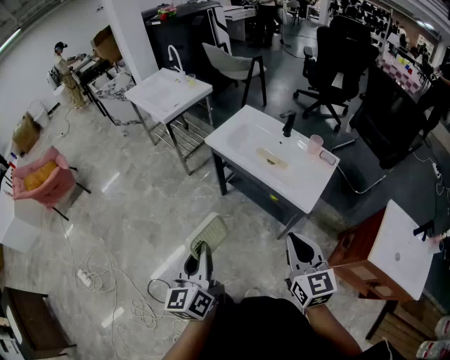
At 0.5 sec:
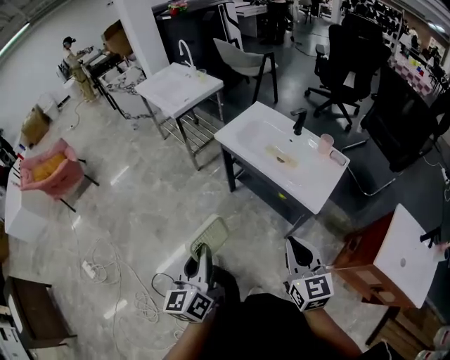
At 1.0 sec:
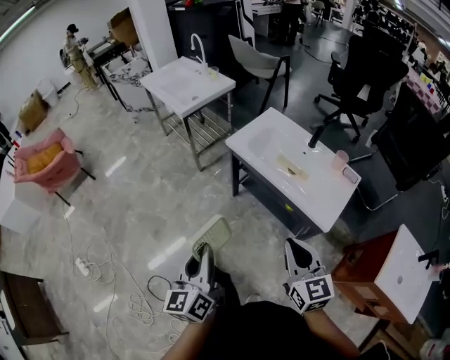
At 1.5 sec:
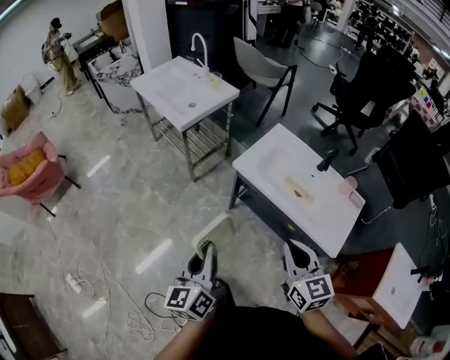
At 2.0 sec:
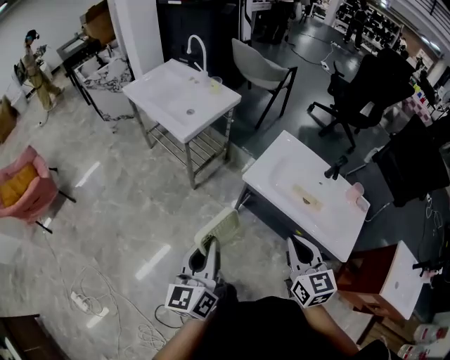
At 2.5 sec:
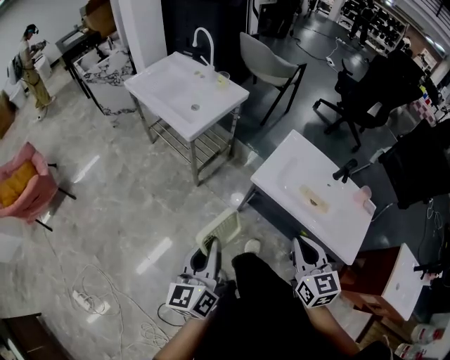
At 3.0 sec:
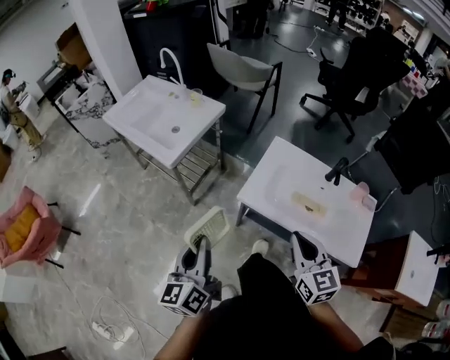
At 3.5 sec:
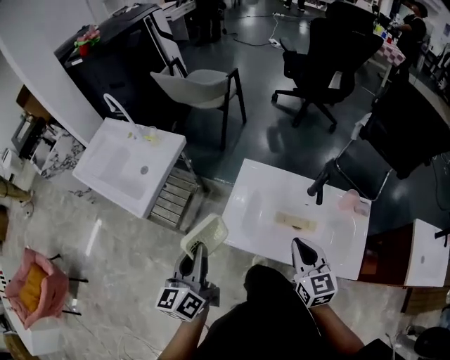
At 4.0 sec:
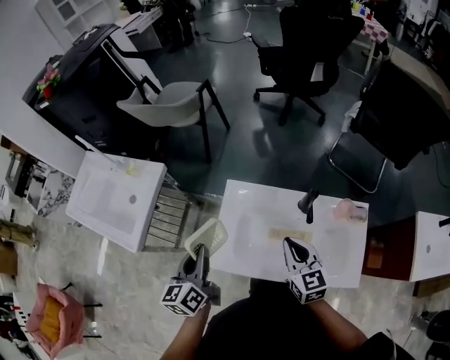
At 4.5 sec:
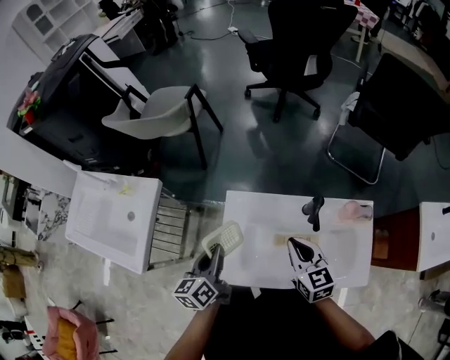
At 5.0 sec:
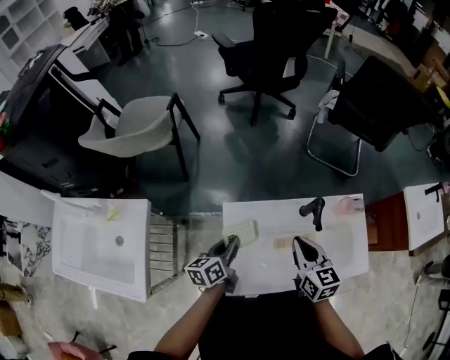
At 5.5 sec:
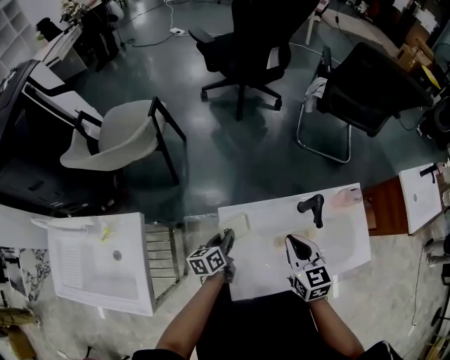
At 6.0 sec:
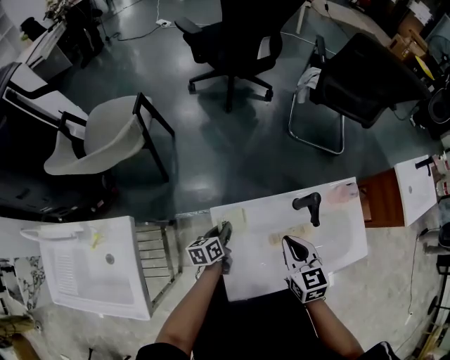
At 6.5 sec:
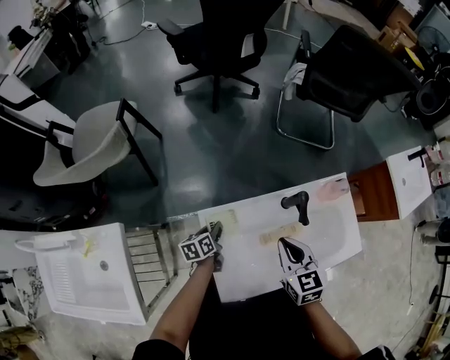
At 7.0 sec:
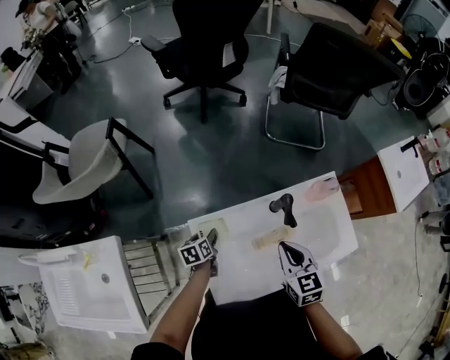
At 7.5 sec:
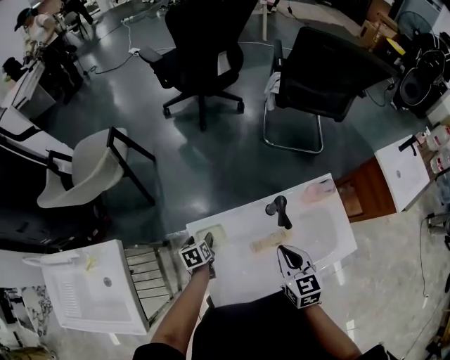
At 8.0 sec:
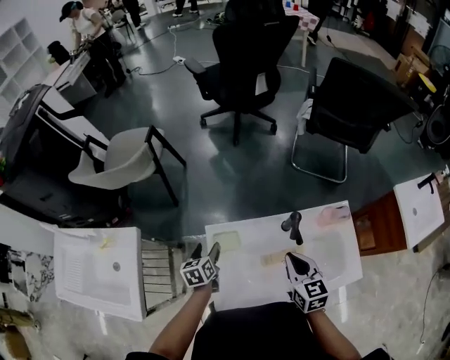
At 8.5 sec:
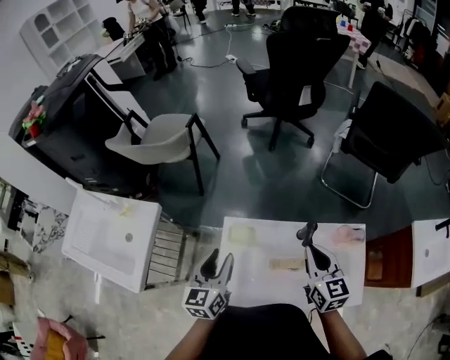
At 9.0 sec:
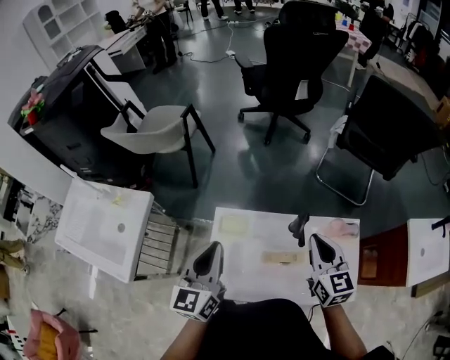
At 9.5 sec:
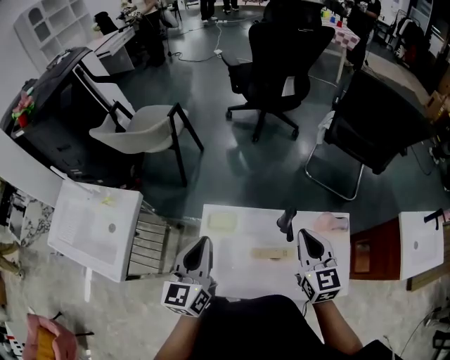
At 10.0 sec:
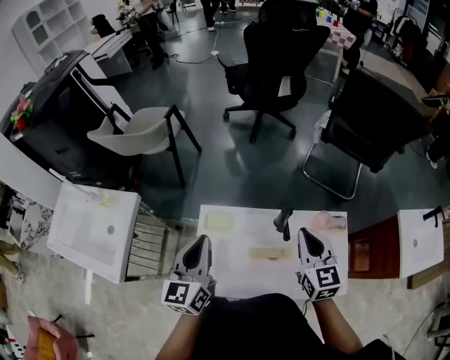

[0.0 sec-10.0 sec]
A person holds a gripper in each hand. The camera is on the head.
0.0 sec to 2.0 sec: Both grippers are carried forward and to the left, some 40 cm.
2.0 sec to 4.0 sec: Both grippers travel together forward and to the right, about 40 cm. The left gripper turns by roughly 30 degrees, while the right gripper changes its angle by about 20 degrees.
4.0 sec to 6.0 sec: The left gripper is displaced downward by about 25 cm, and turns by some 50 degrees. Meanwhile the right gripper shifts by roughly 15 cm, and changes its angle by approximately 30 degrees.
6.0 sec to 8.0 sec: The left gripper moves upward, roughly 5 cm, changes its angle by about 30 degrees, and opens. The right gripper shifts about 10 cm to the right.
8.0 sec to 10.0 sec: The left gripper moves upward and backward, about 25 cm, points its fingers about 30 degrees further upward, and closes its fingers, while the right gripper heads to the right and upward, covering roughly 10 cm.

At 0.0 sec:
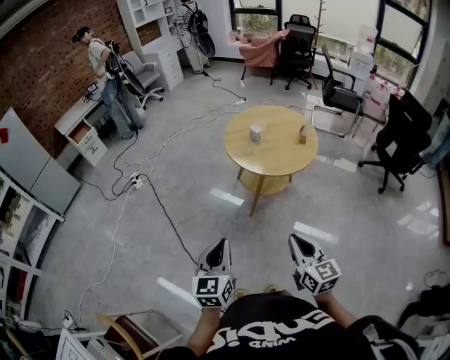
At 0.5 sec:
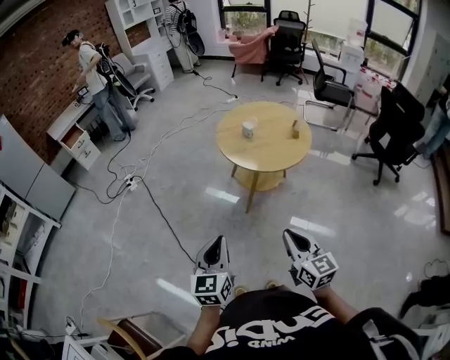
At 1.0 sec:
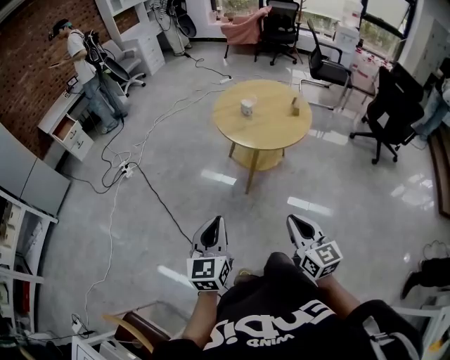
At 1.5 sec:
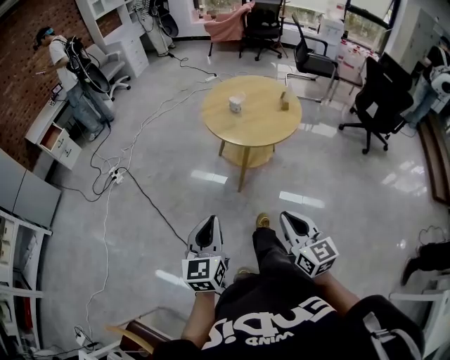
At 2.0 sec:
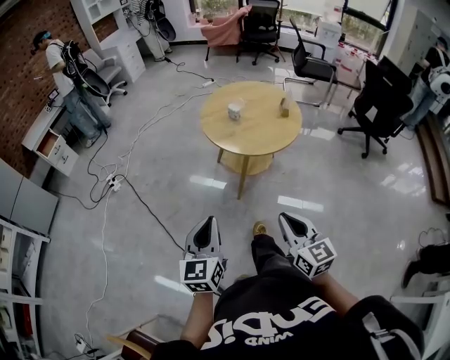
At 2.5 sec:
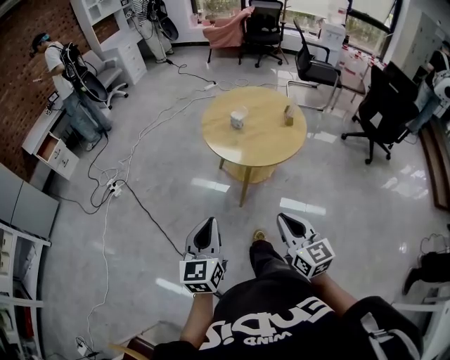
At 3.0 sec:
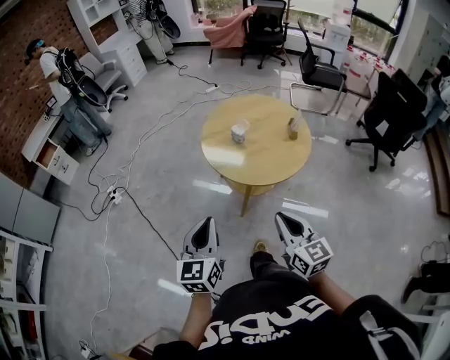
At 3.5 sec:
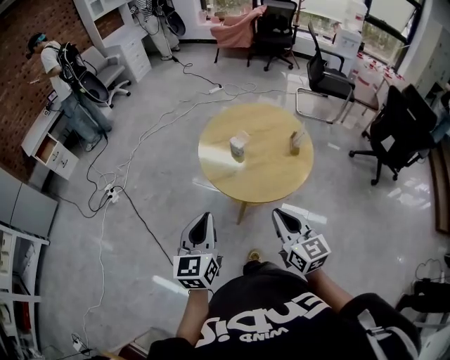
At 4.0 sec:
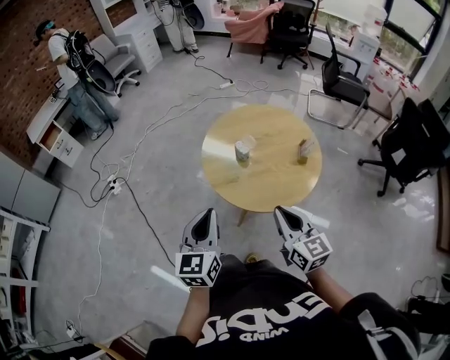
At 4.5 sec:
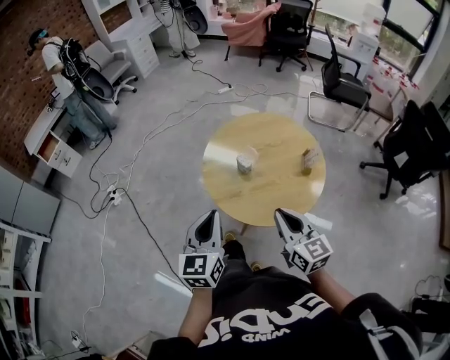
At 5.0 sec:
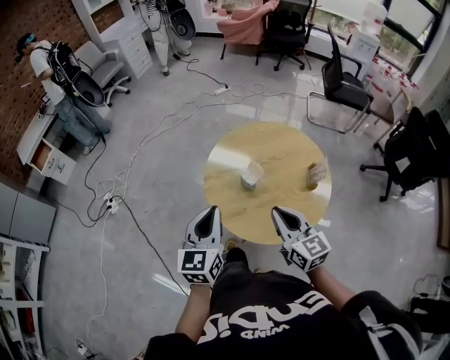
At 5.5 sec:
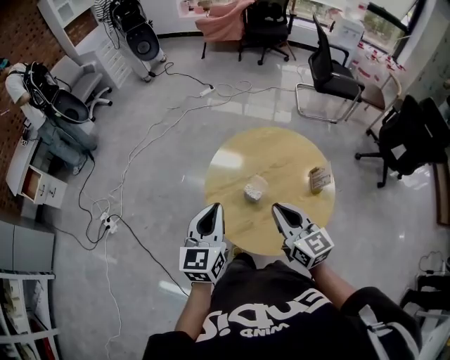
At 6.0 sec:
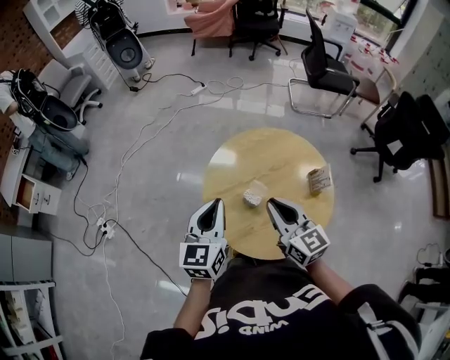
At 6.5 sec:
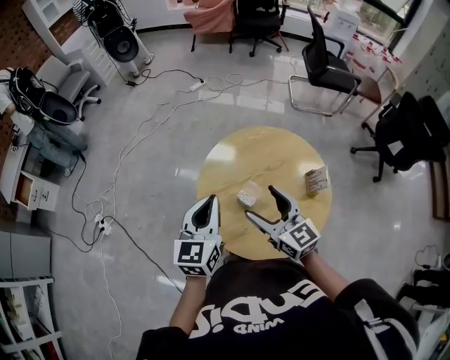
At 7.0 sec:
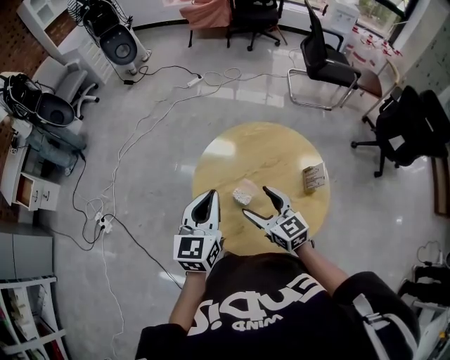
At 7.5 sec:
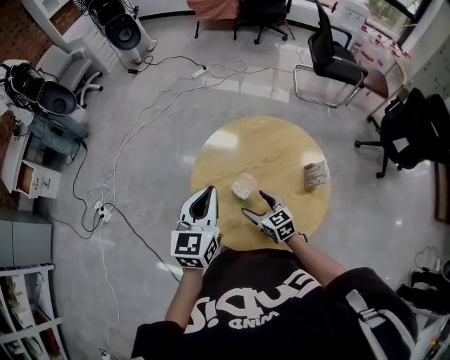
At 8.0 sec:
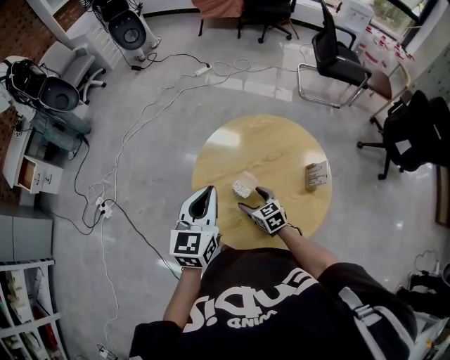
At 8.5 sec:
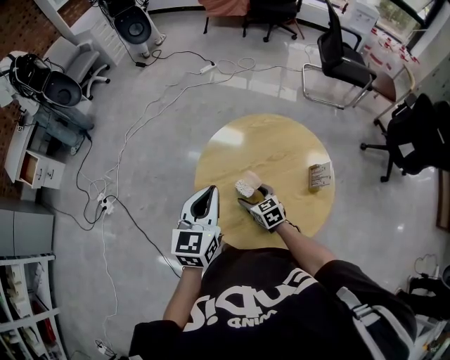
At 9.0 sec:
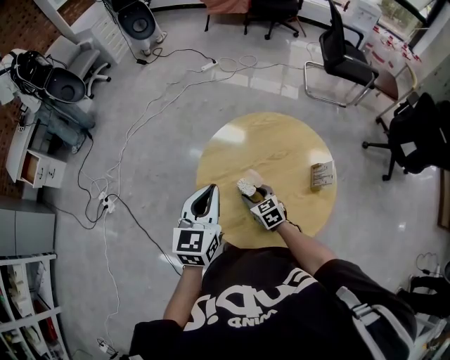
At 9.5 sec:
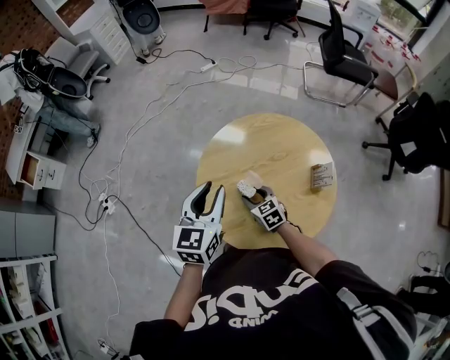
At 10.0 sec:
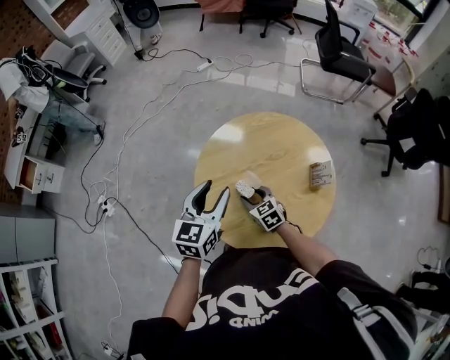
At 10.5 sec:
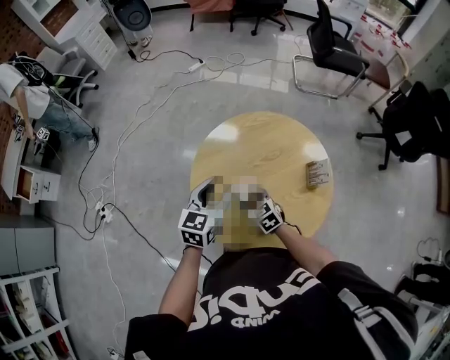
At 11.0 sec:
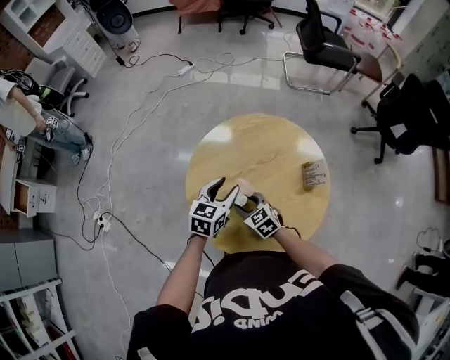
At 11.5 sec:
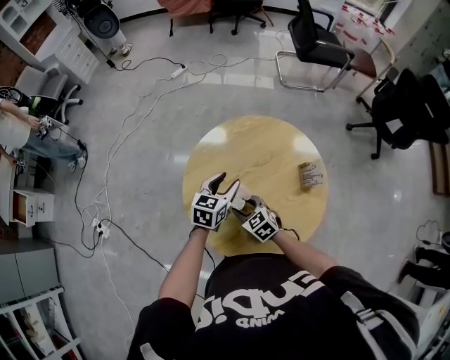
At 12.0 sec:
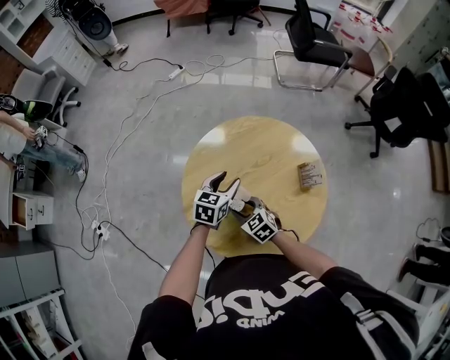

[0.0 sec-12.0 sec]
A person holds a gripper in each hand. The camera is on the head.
0.0 sec to 2.0 sec: The left gripper travels forward by approximately 5 cm, while the right gripper travels to the left by about 5 cm.
2.0 sec to 4.0 sec: The two grippers go about 30 cm forward.
4.0 sec to 6.0 sec: The two grippers go approximately 30 cm forward.
6.0 sec to 8.0 sec: The right gripper heads downward, covering some 25 cm, angles its fingers downward, by about 30 degrees, and opens up.
8.0 sec to 10.0 sec: The left gripper opens up; the right gripper closes up.
10.0 sec to 12.0 sec: The left gripper moves downward, forward and to the right, roughly 20 cm, and rotates roughly 20 degrees.

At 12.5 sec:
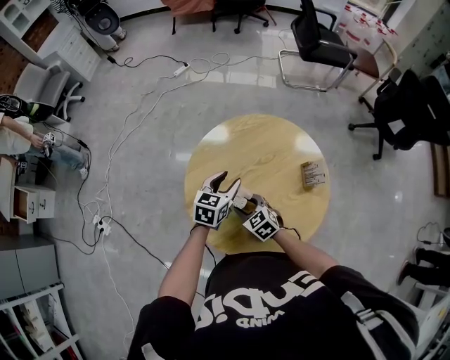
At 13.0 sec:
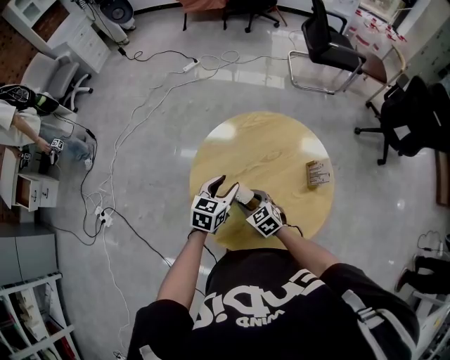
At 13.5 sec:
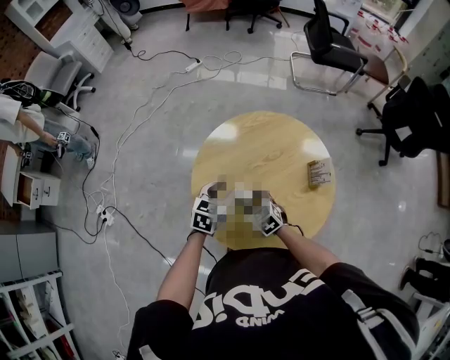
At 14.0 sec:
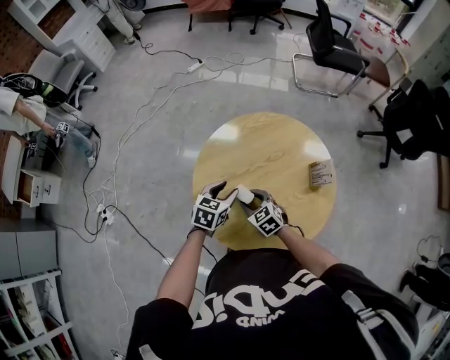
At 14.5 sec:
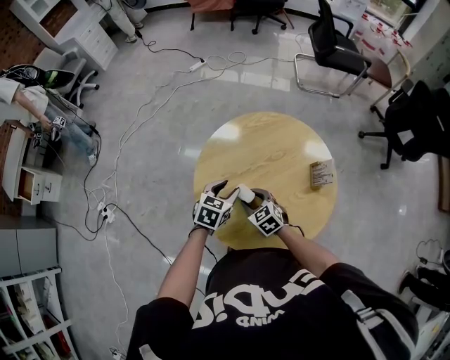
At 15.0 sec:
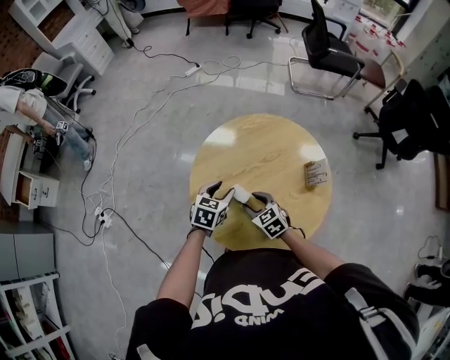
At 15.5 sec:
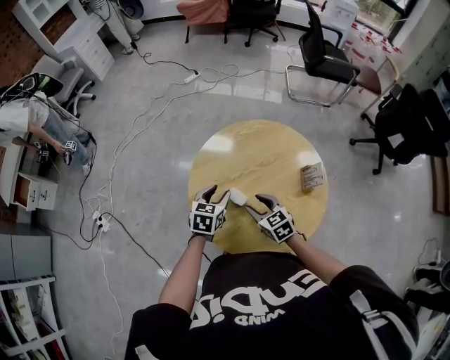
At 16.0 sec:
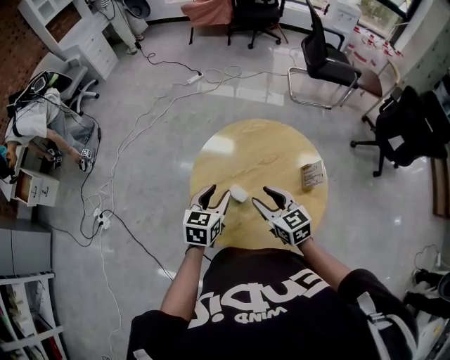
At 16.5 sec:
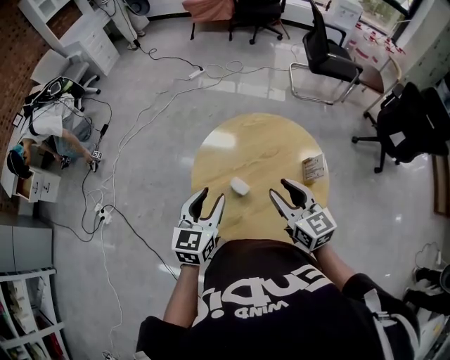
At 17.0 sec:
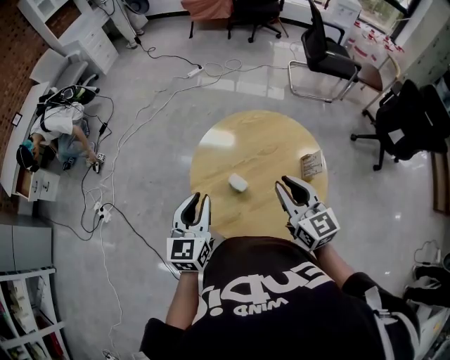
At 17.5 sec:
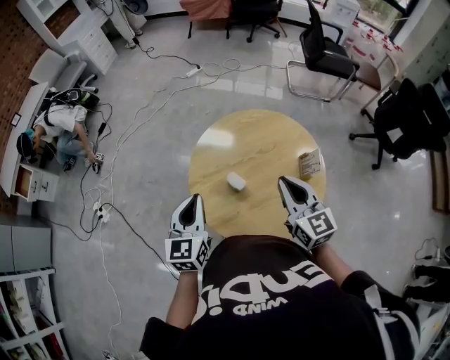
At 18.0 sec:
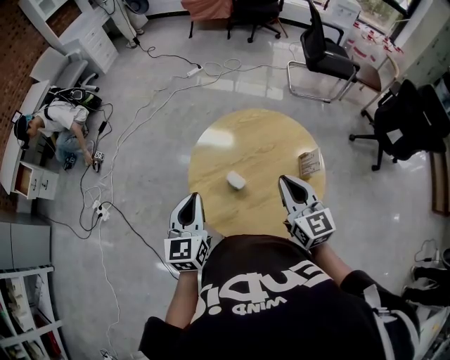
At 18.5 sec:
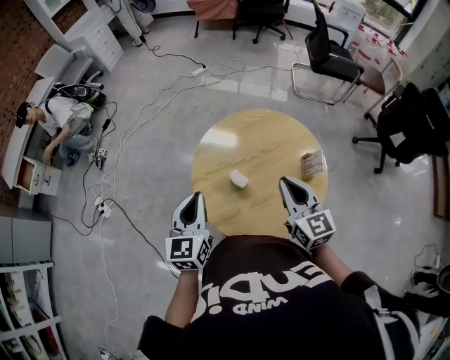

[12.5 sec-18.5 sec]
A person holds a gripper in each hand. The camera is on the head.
12.5 sec to 14.5 sec: The left gripper shifts by about 5 cm.
14.5 sec to 16.5 sec: The right gripper heads upward, covering some 25 cm, and points its fingers roughly 30 degrees further upward; the left gripper shifts roughly 20 cm upward and backward, and turns by approximately 30 degrees.
16.5 sec to 18.5 sec: The right gripper closes. Meanwhile the left gripper shifts by roughly 5 cm, and closes its fingers.
